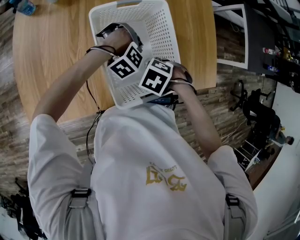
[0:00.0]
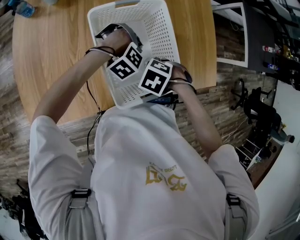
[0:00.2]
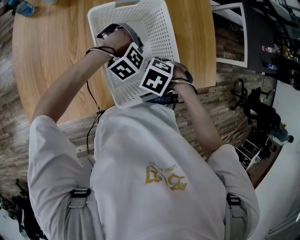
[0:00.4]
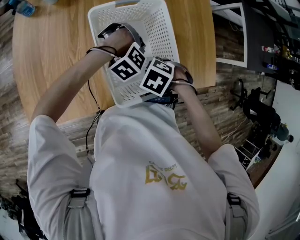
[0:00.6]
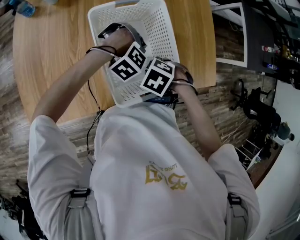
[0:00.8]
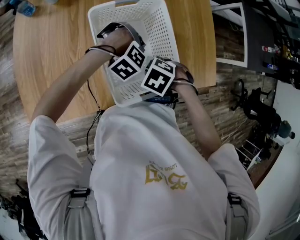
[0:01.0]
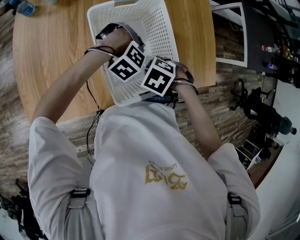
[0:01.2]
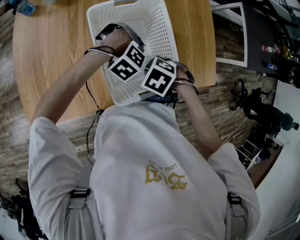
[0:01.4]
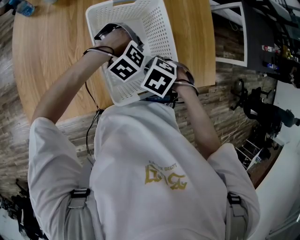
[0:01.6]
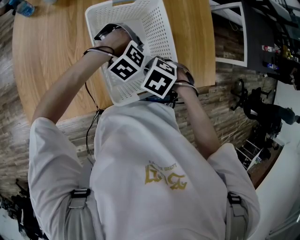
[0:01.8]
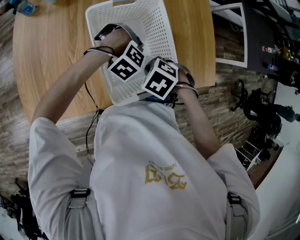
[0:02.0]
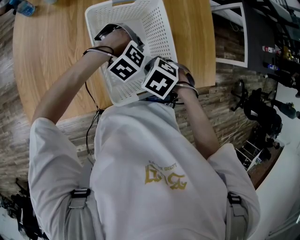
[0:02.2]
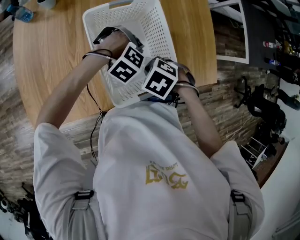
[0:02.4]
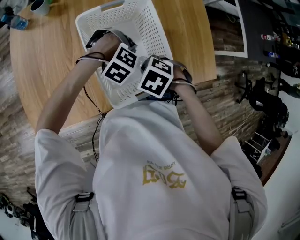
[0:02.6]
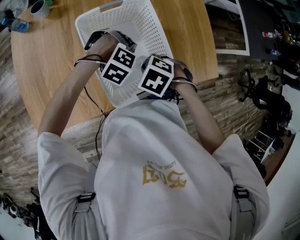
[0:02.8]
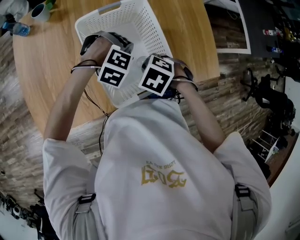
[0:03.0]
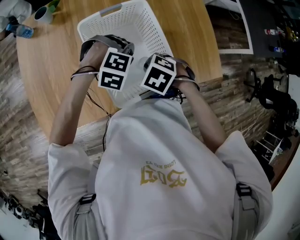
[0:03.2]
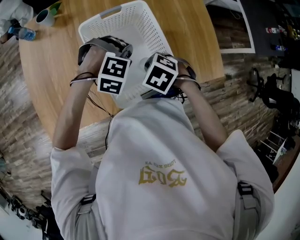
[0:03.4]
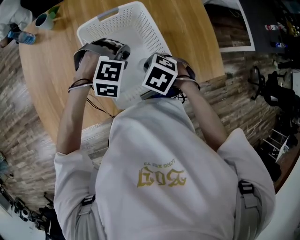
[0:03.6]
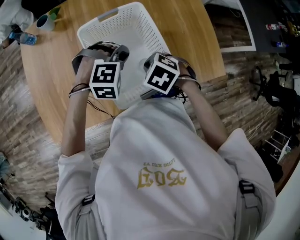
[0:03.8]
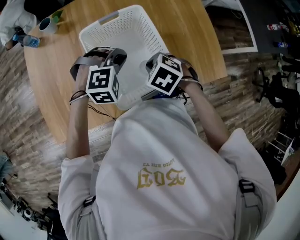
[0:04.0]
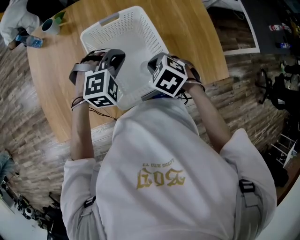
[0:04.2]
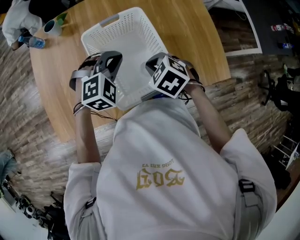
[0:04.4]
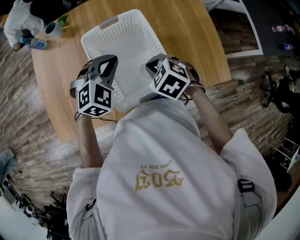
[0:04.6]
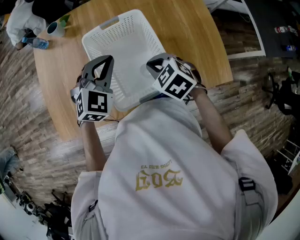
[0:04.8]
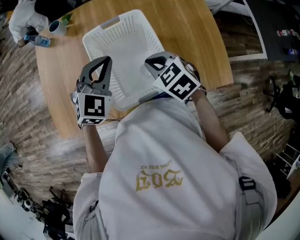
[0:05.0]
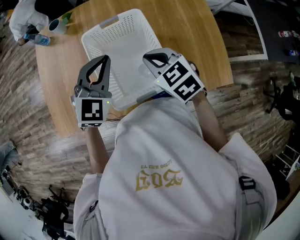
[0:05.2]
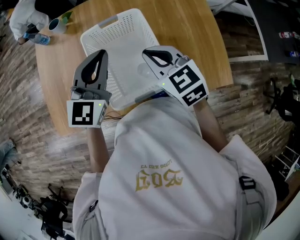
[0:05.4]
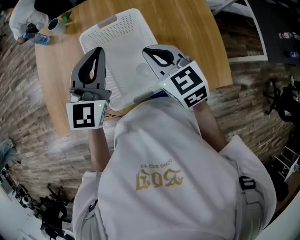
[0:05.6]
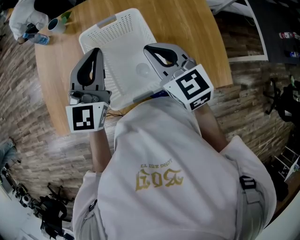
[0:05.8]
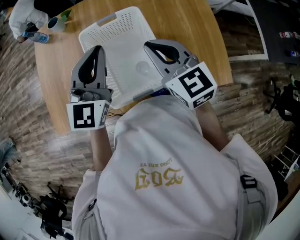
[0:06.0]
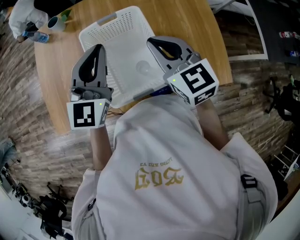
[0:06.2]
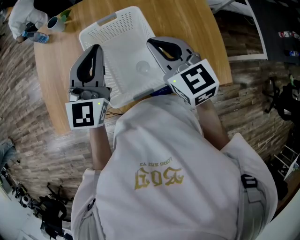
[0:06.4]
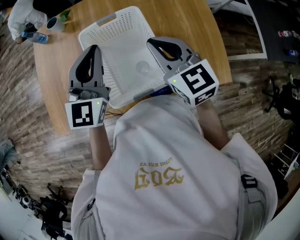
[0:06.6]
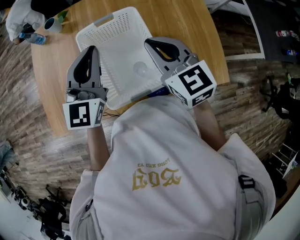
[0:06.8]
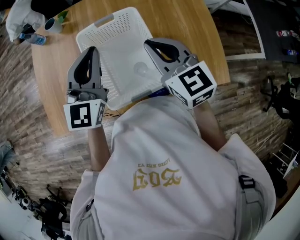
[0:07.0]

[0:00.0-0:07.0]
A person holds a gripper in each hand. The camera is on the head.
0:00.0 to 0:02.8: The grippers make only small movements.
0:02.8 to 0:04.2: The left gripper heads upward, covering approximately 10 cm, and turns by approximately 40 degrees.
0:04.2 to 0:05.6: Both grippers travel together upward, about 15 cm. The right gripper tips its fingers upward by roughly 40 degrees; the left gripper tips its fingers upward by about 50 degrees.
0:05.6 to 0:07.0: The grippers move only a little.

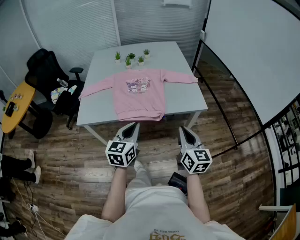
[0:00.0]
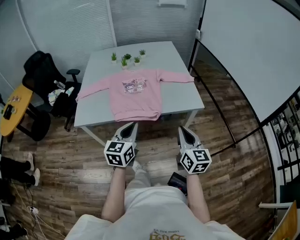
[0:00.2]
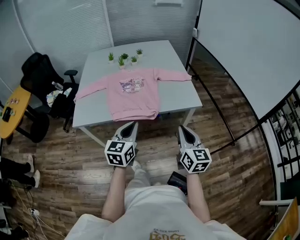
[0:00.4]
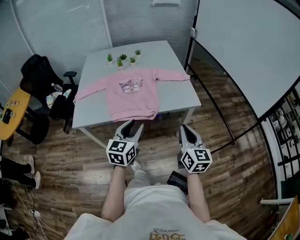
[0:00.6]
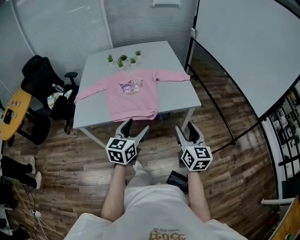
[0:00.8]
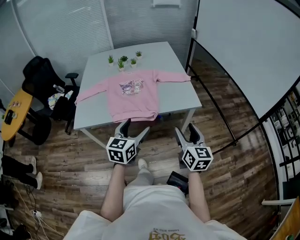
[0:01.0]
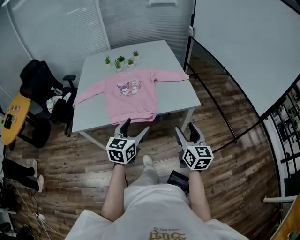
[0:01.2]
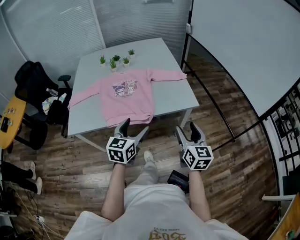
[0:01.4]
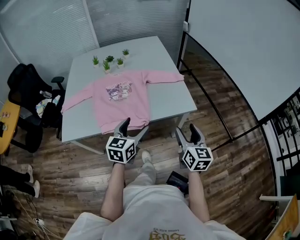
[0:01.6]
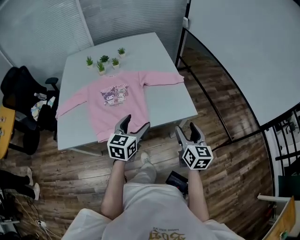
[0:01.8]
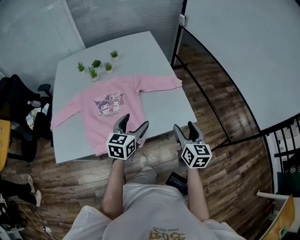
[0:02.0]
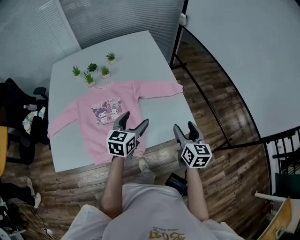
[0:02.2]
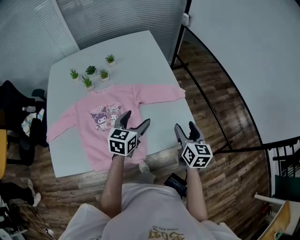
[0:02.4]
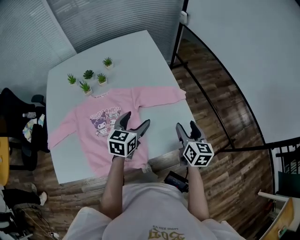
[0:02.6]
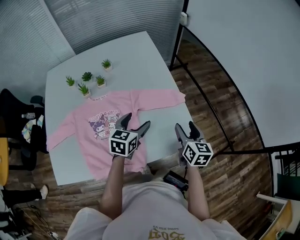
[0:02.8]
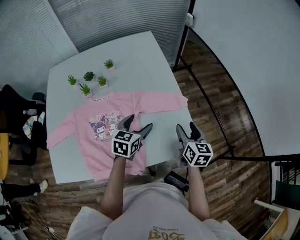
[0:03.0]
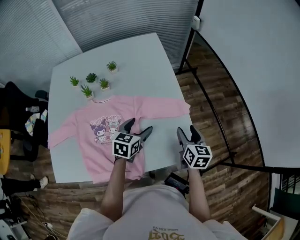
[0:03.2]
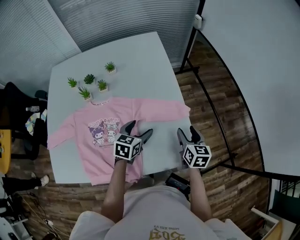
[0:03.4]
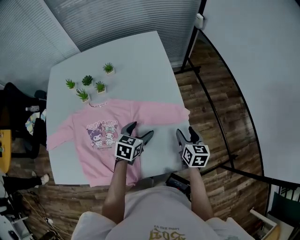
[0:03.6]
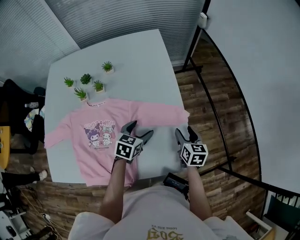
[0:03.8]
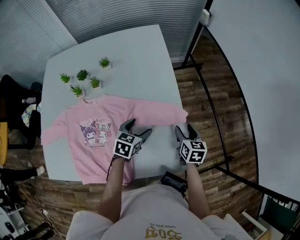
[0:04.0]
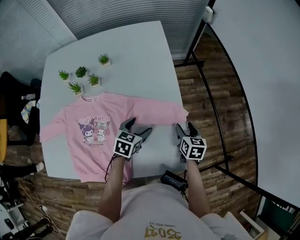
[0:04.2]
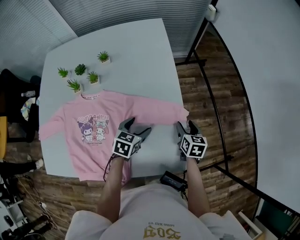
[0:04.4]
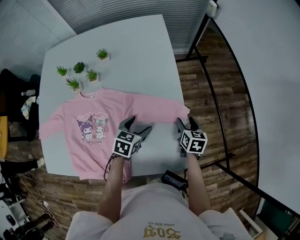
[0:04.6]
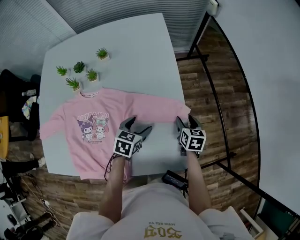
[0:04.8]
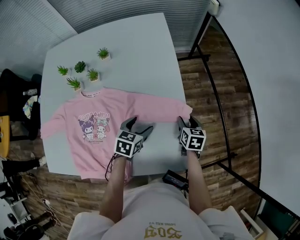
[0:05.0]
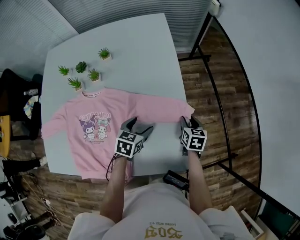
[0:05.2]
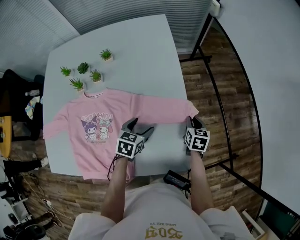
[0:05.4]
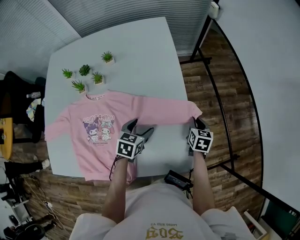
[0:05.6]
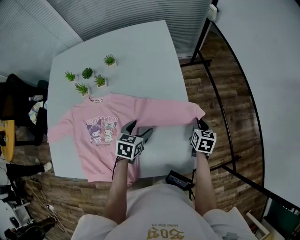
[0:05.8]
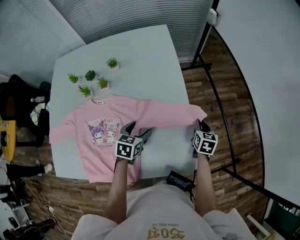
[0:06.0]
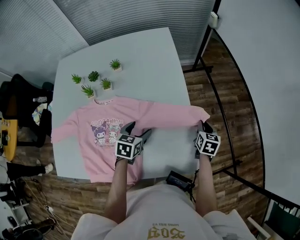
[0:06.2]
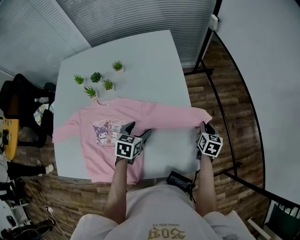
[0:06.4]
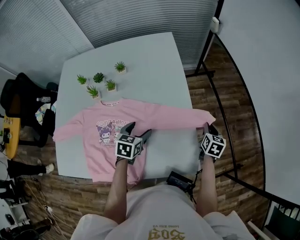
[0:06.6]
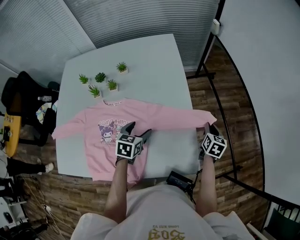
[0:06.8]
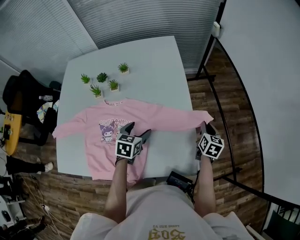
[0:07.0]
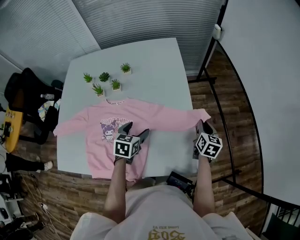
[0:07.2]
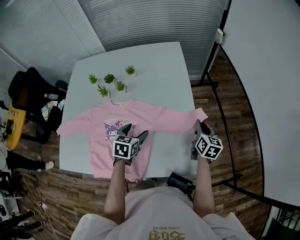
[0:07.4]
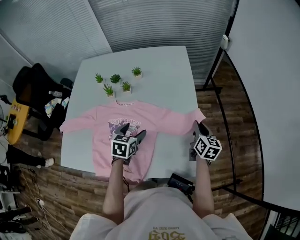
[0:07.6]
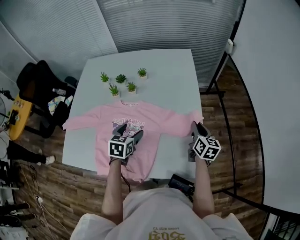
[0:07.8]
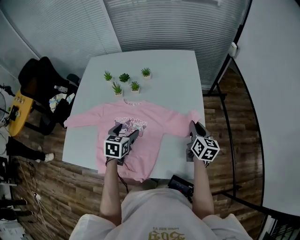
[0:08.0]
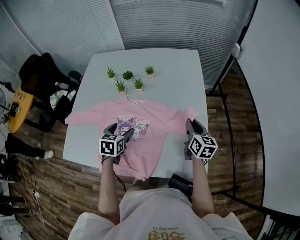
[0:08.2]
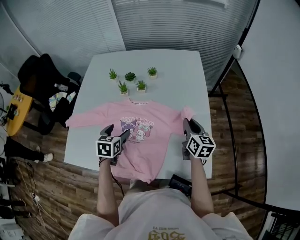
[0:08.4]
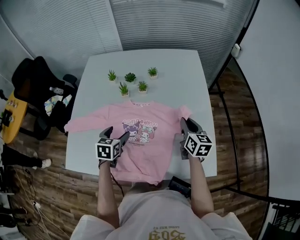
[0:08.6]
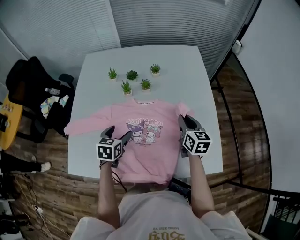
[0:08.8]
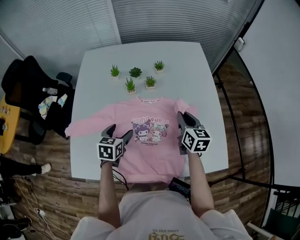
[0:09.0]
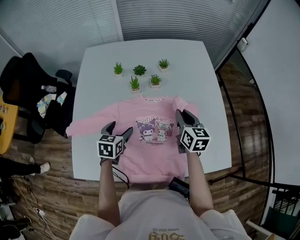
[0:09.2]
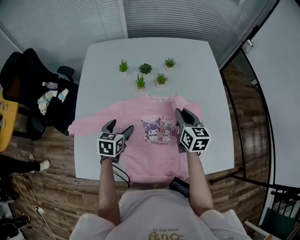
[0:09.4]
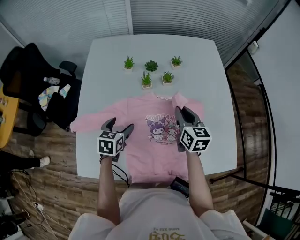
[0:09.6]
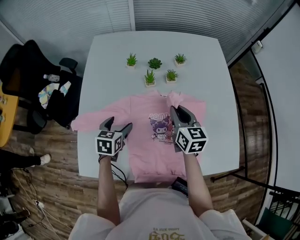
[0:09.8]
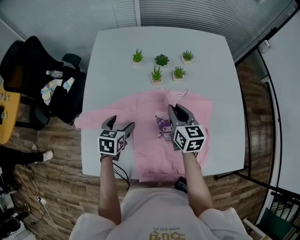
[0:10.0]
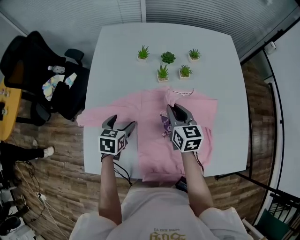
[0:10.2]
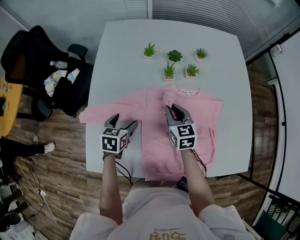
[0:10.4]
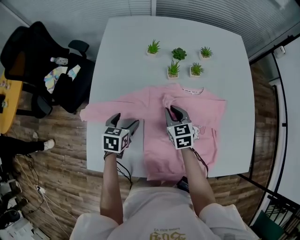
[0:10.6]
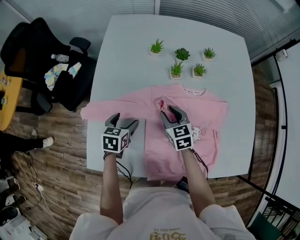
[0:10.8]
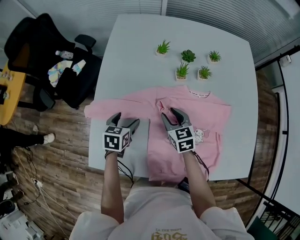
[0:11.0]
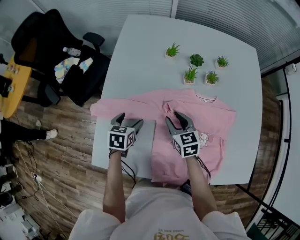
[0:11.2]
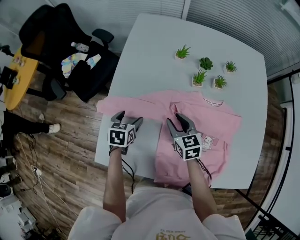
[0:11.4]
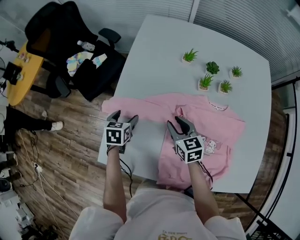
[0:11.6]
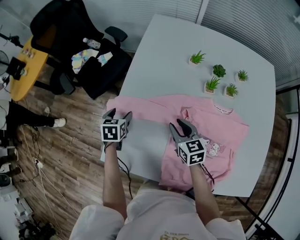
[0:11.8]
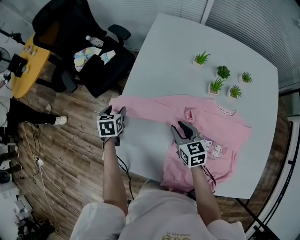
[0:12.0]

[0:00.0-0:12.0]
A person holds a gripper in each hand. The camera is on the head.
0:00.0 to 0:01.6: The grippers both shift forward and to the right by some 15 cm. The right gripper opens up. Meanwhile the left gripper opens up.
0:01.6 to 0:03.0: Both grippers move forward, roughly 35 cm.
0:03.0 to 0:04.4: The right gripper goes roughly 20 cm downward and forward; the left gripper shifts roughly 15 cm downward and forward.
0:04.4 to 0:06.0: The right gripper closes its fingers.
0:06.0 to 0:07.6: The right gripper shifts roughly 15 cm upward and to the left, and turns by about 20 degrees; the left gripper travels to the left and upward by roughly 10 cm.
0:07.6 to 0:09.0: Both grippers move to the left, some 25 cm.
0:09.0 to 0:10.4: The left gripper shifts roughly 15 cm to the left and downward. Meanwhile the right gripper shifts some 25 cm to the left.
0:10.4 to 0:12.0: The left gripper shifts by approximately 25 cm, and swivels roughly 30 degrees, while the right gripper ends up approximately 15 cm from where it was, and swivels about 20 degrees.

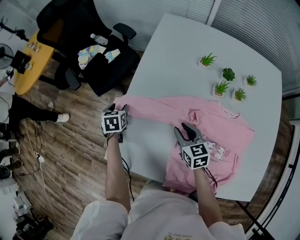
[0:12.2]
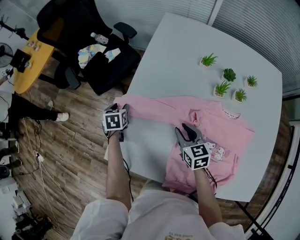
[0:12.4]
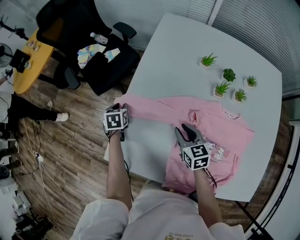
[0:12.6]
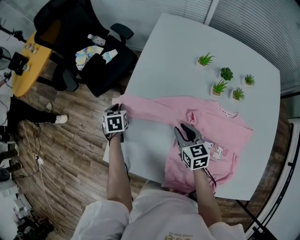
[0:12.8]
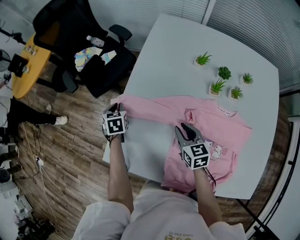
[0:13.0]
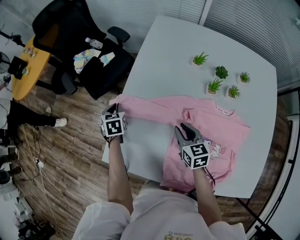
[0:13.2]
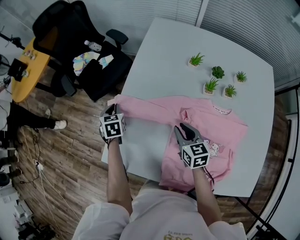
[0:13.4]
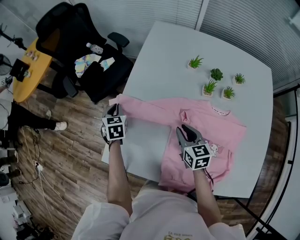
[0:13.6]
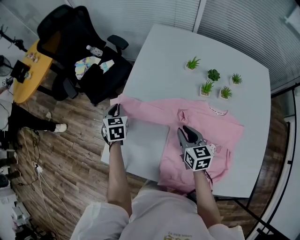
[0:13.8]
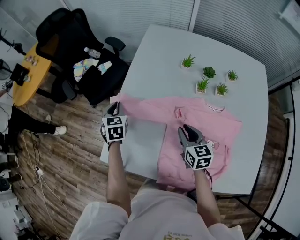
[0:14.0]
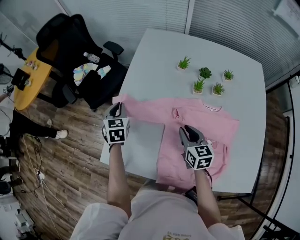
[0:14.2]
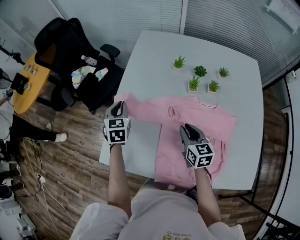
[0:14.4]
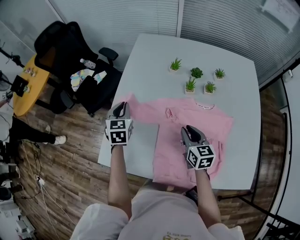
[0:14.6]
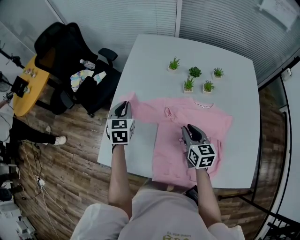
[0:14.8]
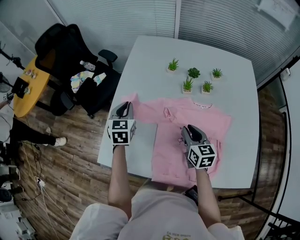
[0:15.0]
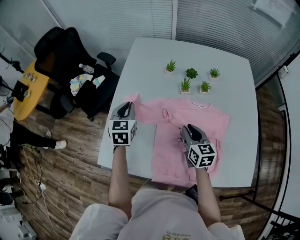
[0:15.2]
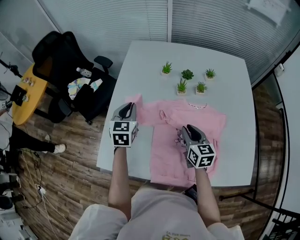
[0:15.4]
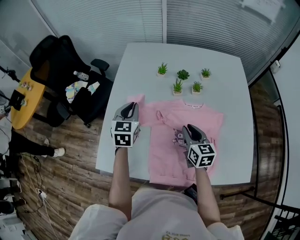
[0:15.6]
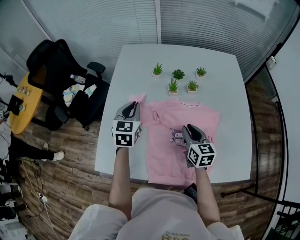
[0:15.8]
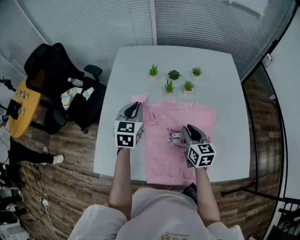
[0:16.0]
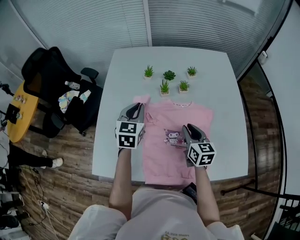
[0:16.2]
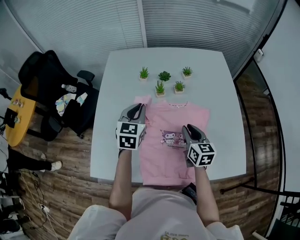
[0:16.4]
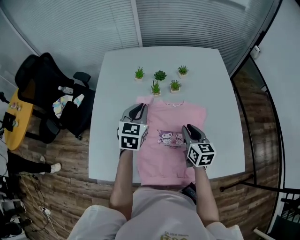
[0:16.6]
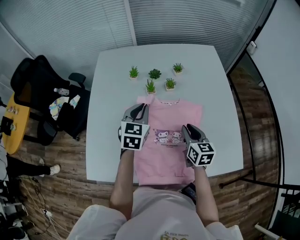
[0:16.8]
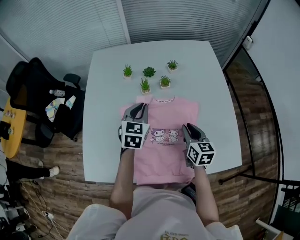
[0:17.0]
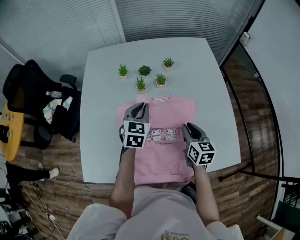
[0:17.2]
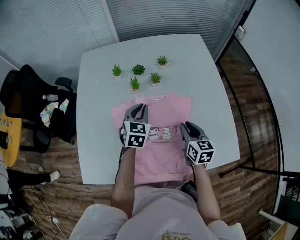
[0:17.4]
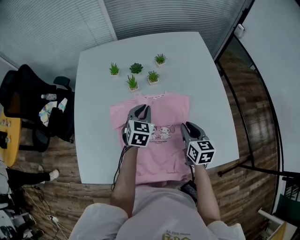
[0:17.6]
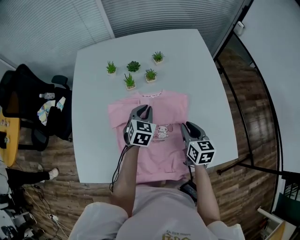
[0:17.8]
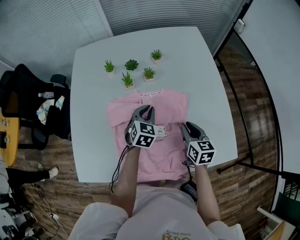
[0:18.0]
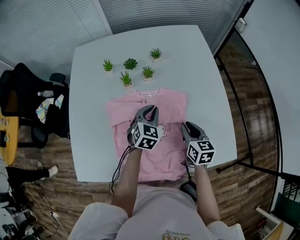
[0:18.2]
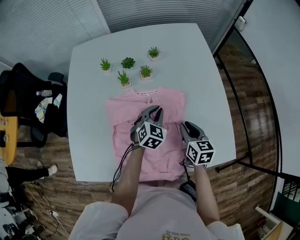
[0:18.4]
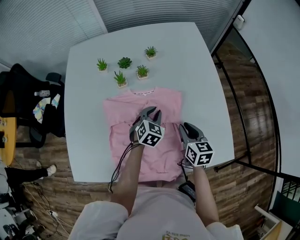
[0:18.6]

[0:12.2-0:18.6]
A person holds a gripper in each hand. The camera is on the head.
0:12.2 to 0:13.8: The left gripper is displaced upward by some 10 cm, and closes, while the right gripper shifts by roughly 5 cm.
0:13.8 to 0:15.4: The left gripper goes some 20 cm to the right and upward, and turns by about 30 degrees. Meanwhile the right gripper moves to the right, backward and upward, approximately 10 cm.
0:15.4 to 0:17.0: The right gripper moves to the right, some 15 cm, while the left gripper heads to the right, covering about 20 cm, and swivels approximately 20 degrees.
0:17.0 to 0:18.6: The right gripper goes about 10 cm to the right and downward, while the left gripper moves to the right and downward, roughly 25 cm, and changes its angle by about 20 degrees.
